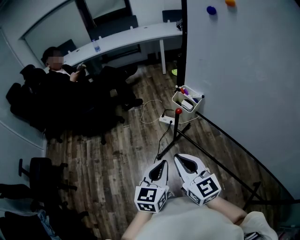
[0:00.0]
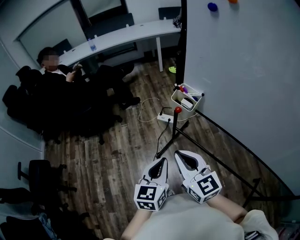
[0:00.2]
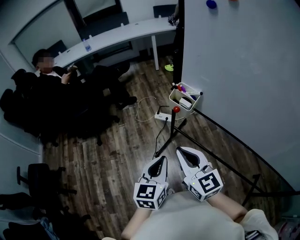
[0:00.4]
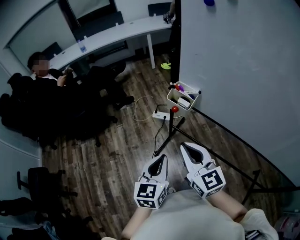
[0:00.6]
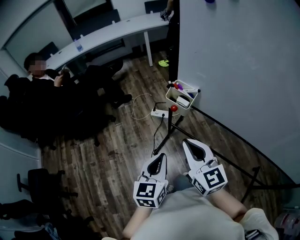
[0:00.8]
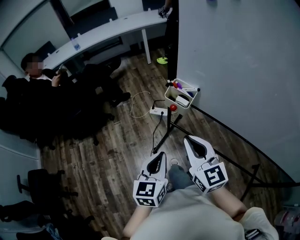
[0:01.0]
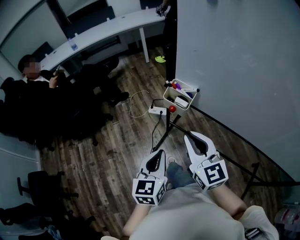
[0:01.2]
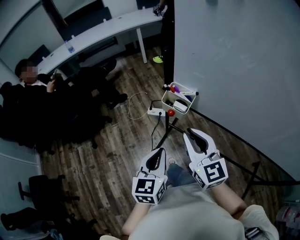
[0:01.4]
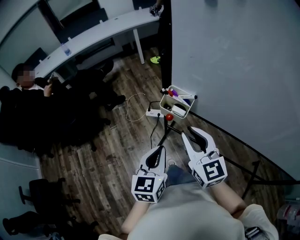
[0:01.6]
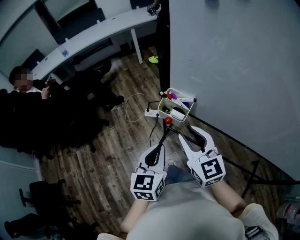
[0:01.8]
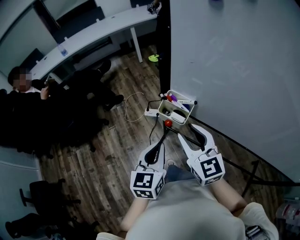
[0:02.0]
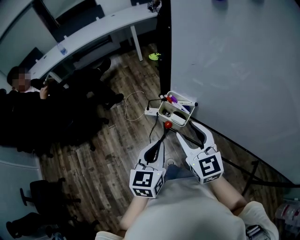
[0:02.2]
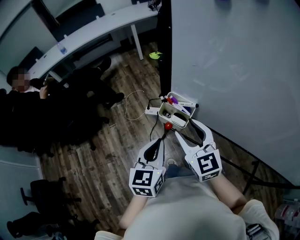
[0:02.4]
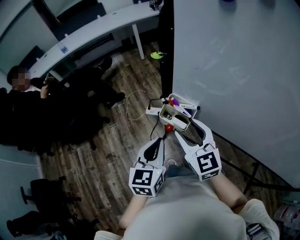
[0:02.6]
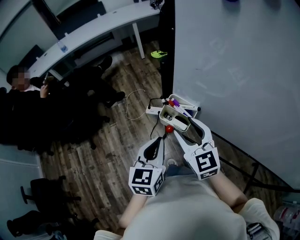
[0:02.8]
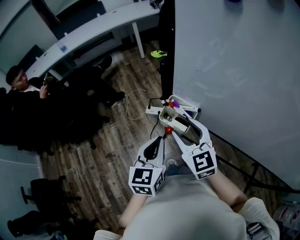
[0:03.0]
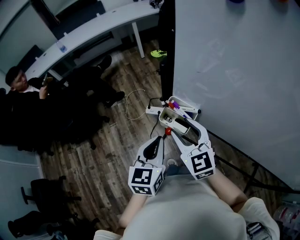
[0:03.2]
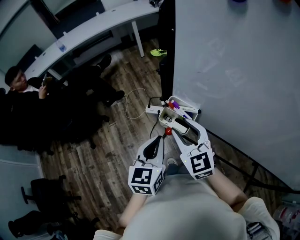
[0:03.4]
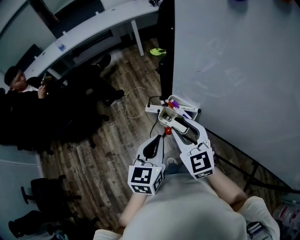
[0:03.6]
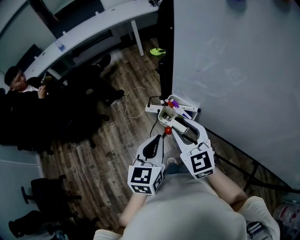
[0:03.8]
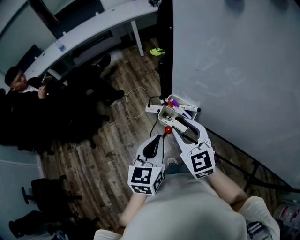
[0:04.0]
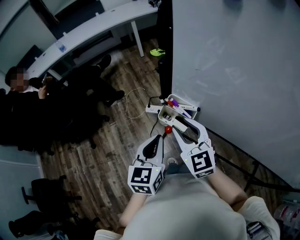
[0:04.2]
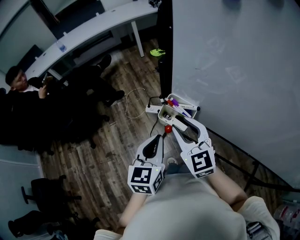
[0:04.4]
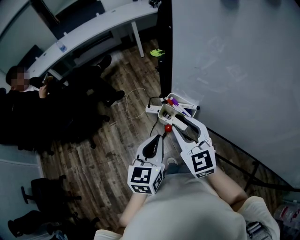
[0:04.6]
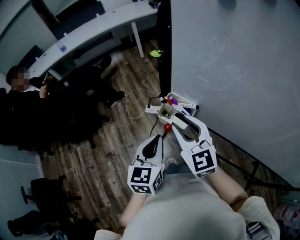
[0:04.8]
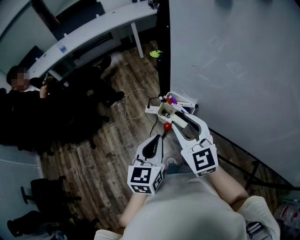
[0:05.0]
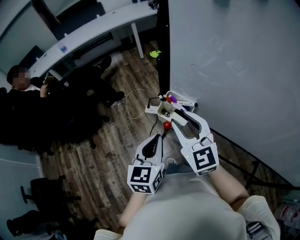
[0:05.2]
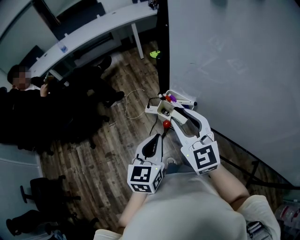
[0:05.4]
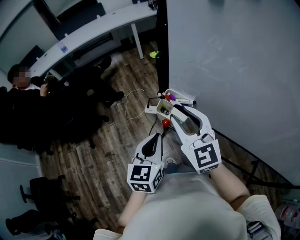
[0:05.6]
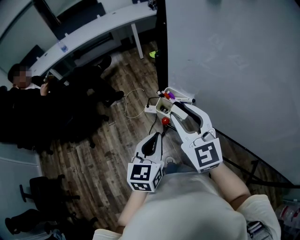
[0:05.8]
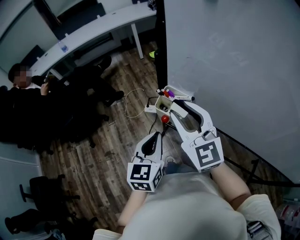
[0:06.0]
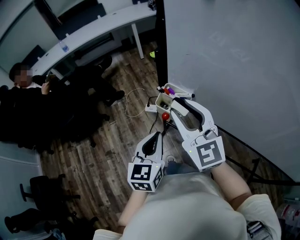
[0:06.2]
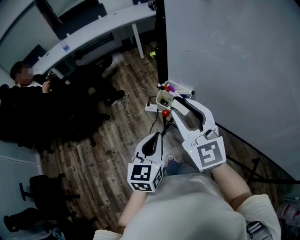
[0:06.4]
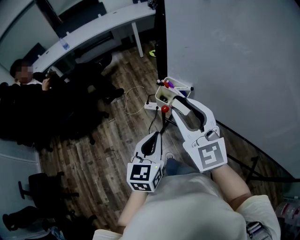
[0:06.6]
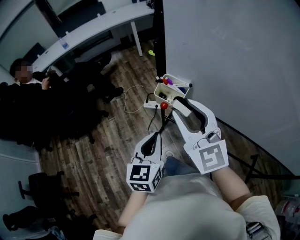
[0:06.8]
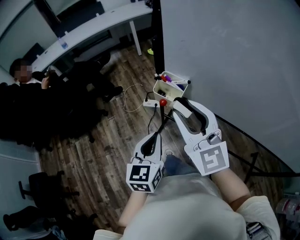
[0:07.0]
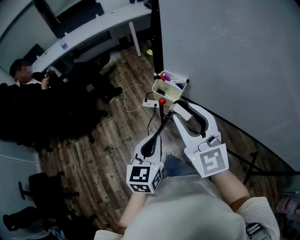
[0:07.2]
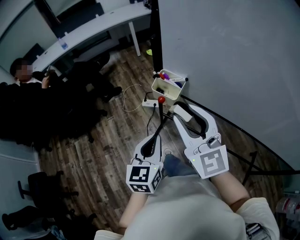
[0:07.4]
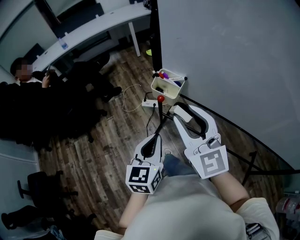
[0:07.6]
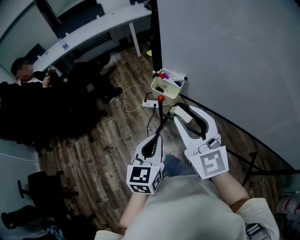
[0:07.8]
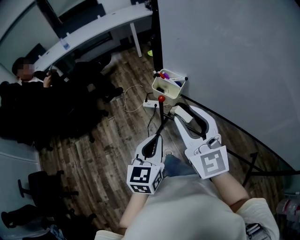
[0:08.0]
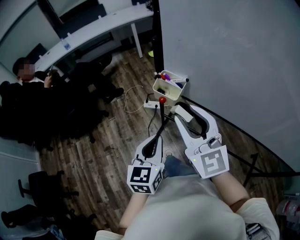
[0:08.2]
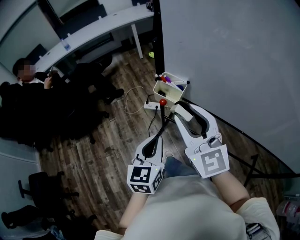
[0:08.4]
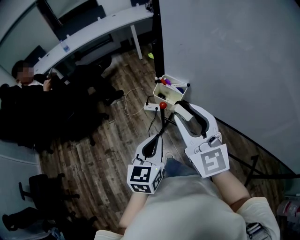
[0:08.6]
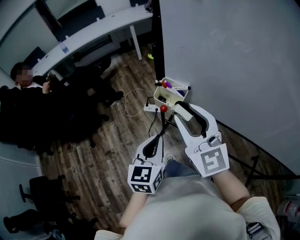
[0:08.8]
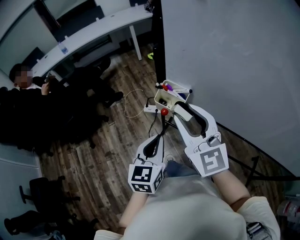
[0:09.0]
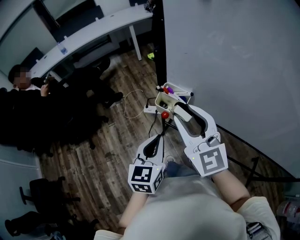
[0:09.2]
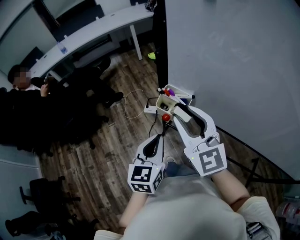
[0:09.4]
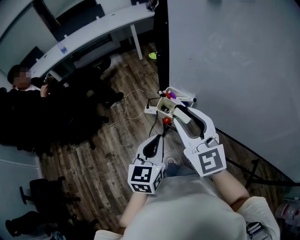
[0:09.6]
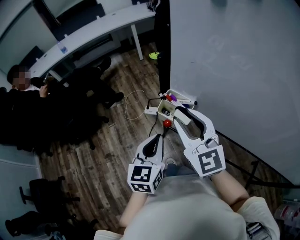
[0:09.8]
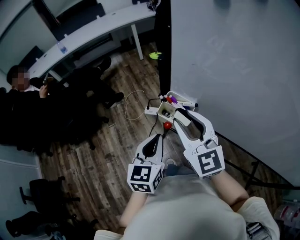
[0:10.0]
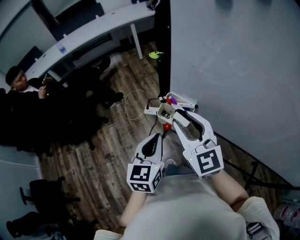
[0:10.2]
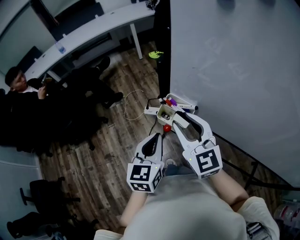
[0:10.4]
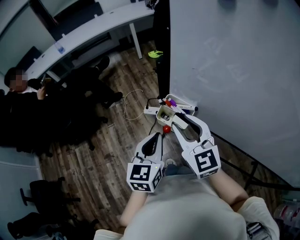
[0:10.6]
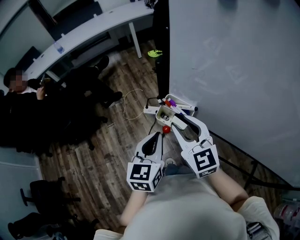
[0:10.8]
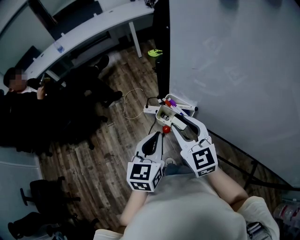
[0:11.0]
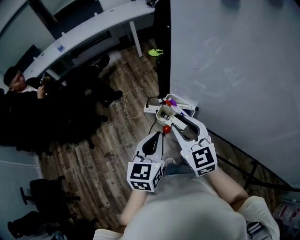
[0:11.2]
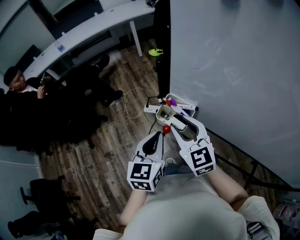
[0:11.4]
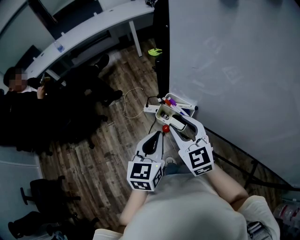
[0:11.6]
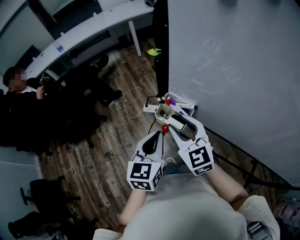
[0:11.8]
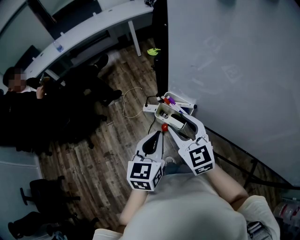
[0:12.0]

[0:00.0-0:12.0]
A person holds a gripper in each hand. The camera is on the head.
0:00.0 to 0:01.6: The right gripper is displaced forward and to the right by some 15 cm, and rotates some 20 degrees. Meanwhile the left gripper heads forward, covering some 15 cm.
0:01.6 to 0:03.0: The grippers both shift forward by some 10 cm. The right gripper opens.
0:03.0 to 0:04.4: The two grippers keep their place.
0:04.4 to 0:06.0: The right gripper goes roughly 10 cm upward.
0:06.0 to 0:07.6: Both grippers travel together backward, some 10 cm.
0:07.6 to 0:09.0: The two grippers go approximately 5 cm forward.
0:09.0 to 0:10.4: The right gripper heads forward and downward, covering some 10 cm, while the left gripper moves forward, roughly 10 cm.
0:10.4 to 0:12.0: The right gripper moves downward, some 5 cm.

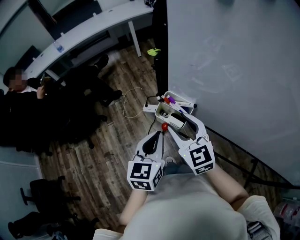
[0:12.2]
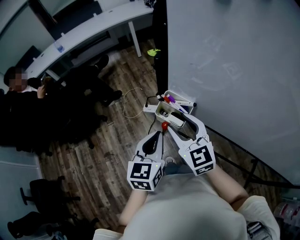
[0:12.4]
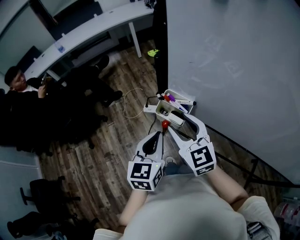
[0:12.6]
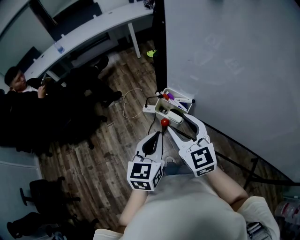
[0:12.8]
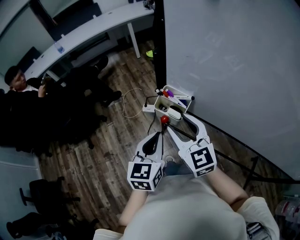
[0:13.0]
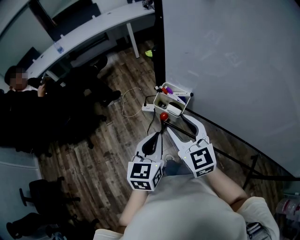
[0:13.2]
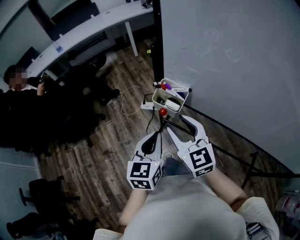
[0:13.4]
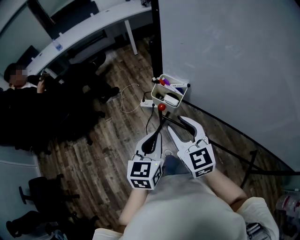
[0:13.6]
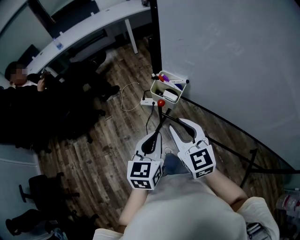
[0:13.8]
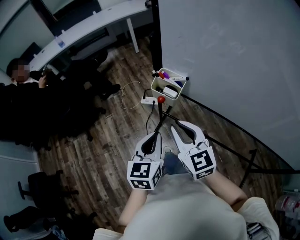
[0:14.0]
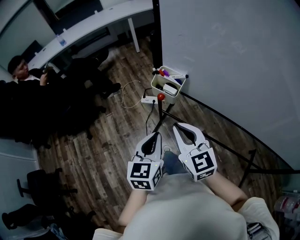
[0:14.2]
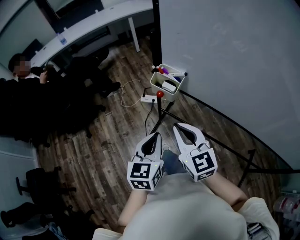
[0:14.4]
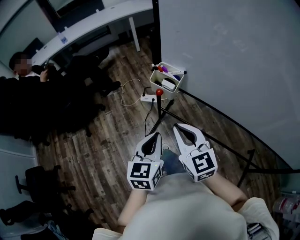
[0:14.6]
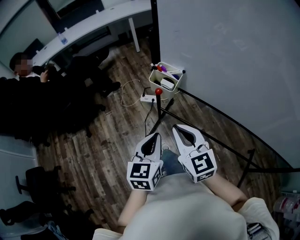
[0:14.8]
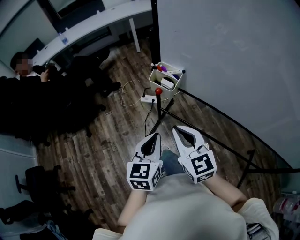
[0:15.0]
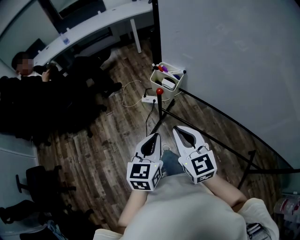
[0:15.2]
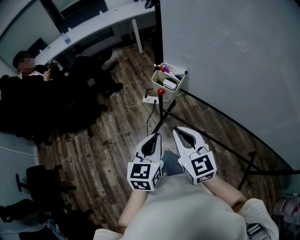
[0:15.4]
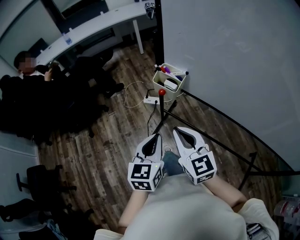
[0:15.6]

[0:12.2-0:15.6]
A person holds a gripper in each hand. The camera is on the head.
0:12.2 to 0:13.8: The two grippers go roughly 10 cm backward. The right gripper closes.
0:13.8 to 0:15.6: The two grippers go about 10 cm backward. The right gripper closes.

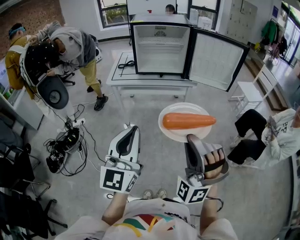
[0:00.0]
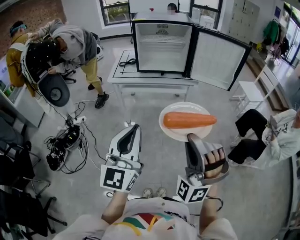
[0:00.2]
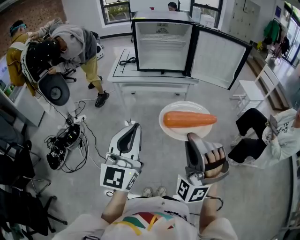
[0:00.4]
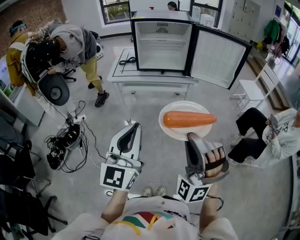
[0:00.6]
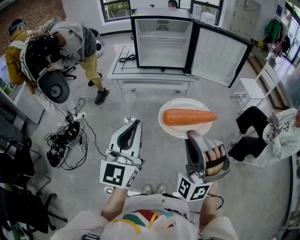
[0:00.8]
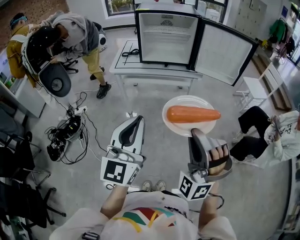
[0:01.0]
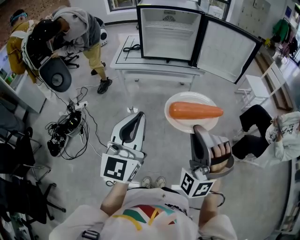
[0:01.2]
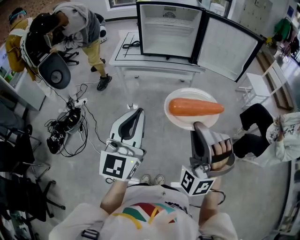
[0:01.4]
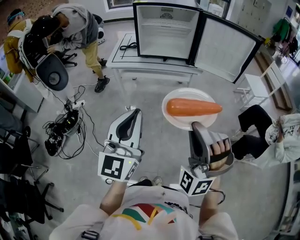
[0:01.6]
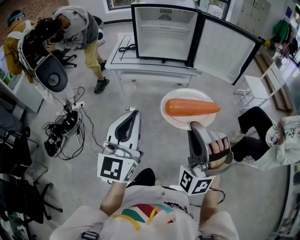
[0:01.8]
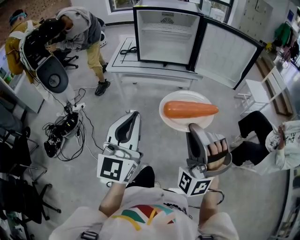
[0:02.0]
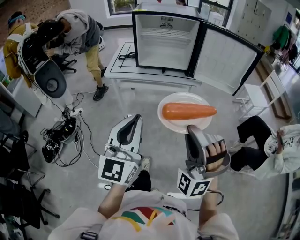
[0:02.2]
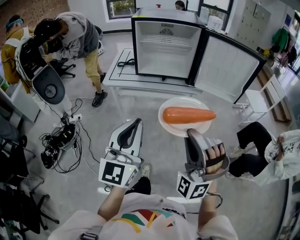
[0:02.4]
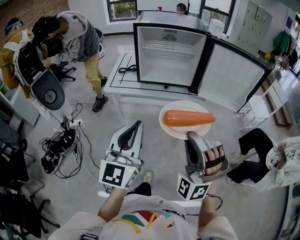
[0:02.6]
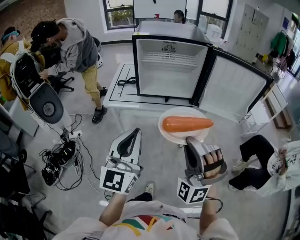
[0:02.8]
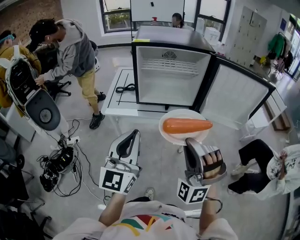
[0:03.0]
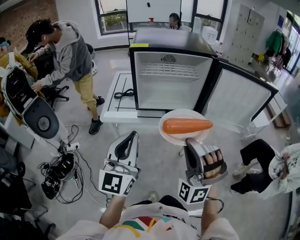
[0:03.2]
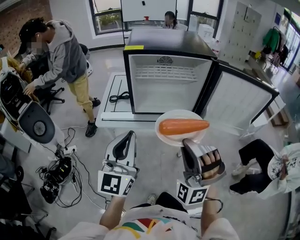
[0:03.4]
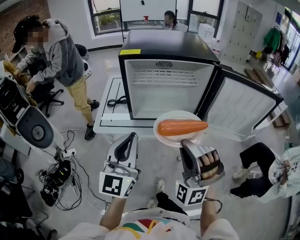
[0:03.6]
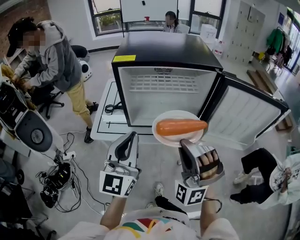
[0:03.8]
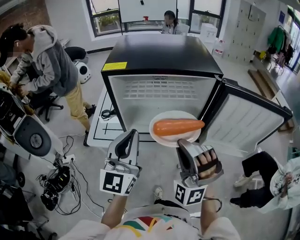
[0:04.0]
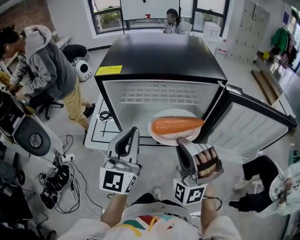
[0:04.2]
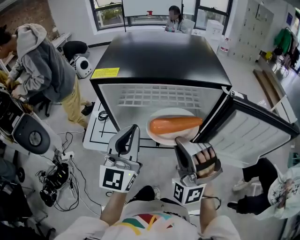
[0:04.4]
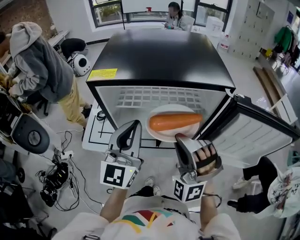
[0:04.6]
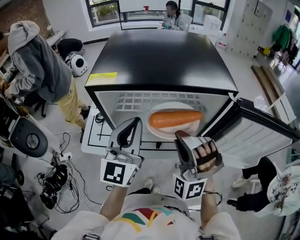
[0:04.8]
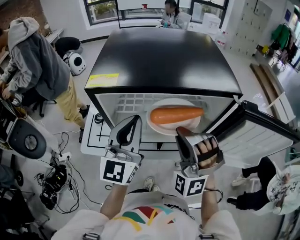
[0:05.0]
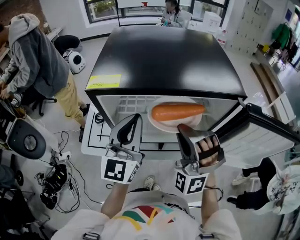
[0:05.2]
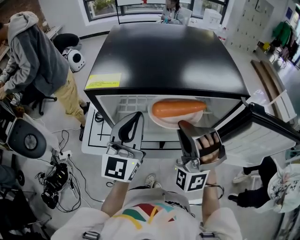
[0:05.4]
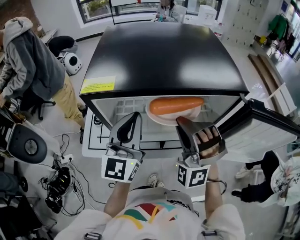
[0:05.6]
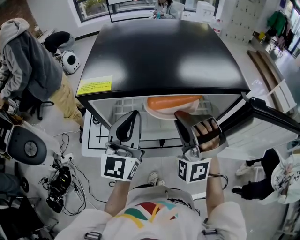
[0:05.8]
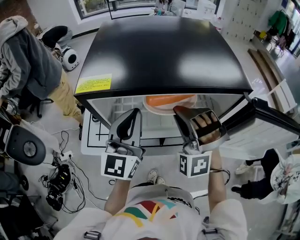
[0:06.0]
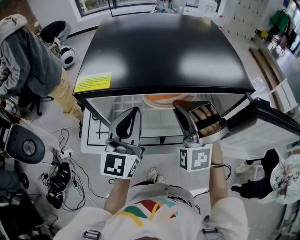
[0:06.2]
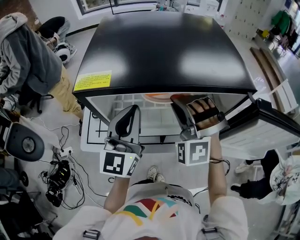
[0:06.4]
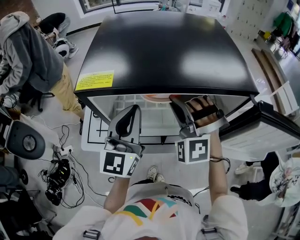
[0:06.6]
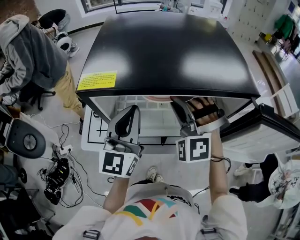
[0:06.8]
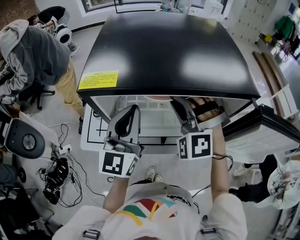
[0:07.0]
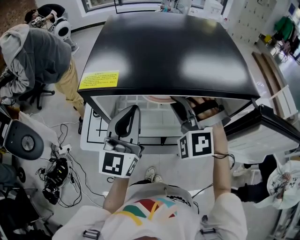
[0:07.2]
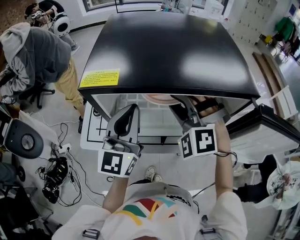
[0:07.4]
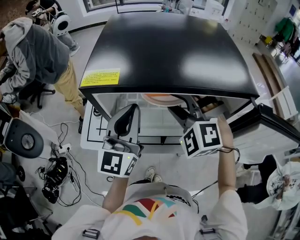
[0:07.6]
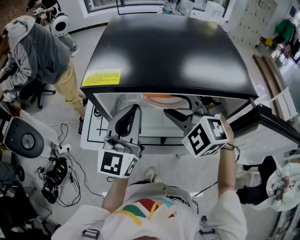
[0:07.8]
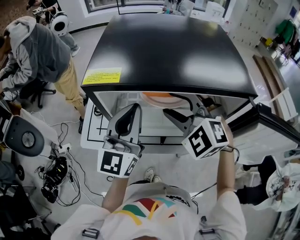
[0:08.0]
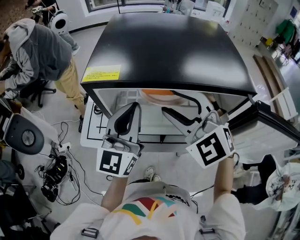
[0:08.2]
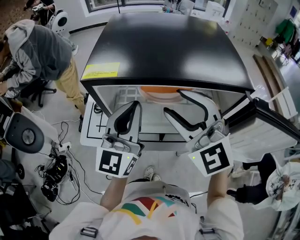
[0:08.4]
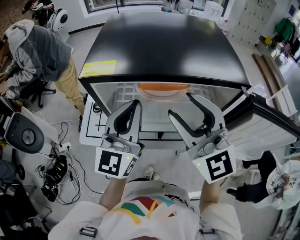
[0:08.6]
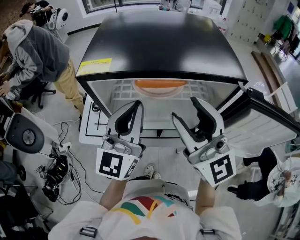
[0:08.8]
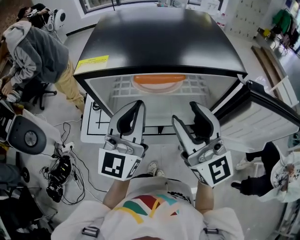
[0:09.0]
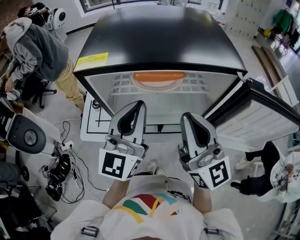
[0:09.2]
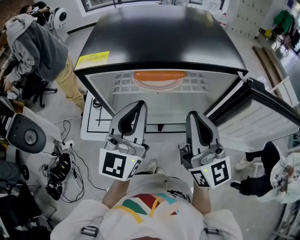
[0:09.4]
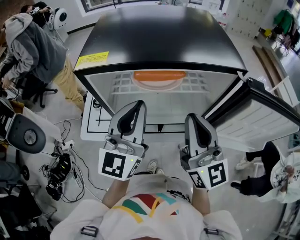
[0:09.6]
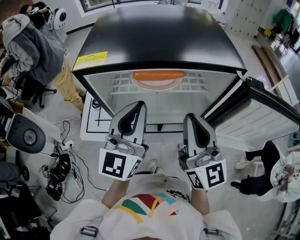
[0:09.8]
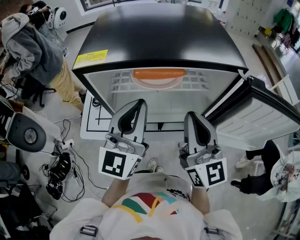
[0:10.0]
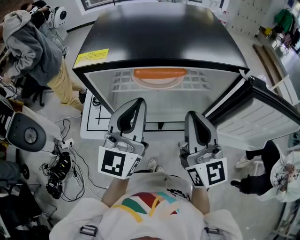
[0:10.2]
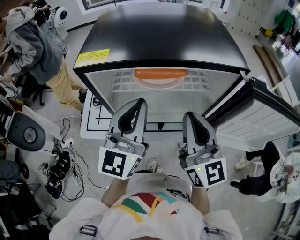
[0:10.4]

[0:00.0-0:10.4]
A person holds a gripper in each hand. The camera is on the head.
0:00.0 to 0:01.4: The grippers move only a little.
0:01.4 to 0:03.0: Both grippers move forward, roughly 25 cm.
0:03.0 to 0:04.4: Both grippers travel together forward, some 30 cm.
0:04.4 to 0:06.0: Both grippers move forward, about 10 cm.
0:06.0 to 0:07.4: The right gripper moves approximately 5 cm.
0:07.4 to 0:09.0: The right gripper is displaced backward and upward by some 15 cm, twists roughly 70 degrees clockwise, seen from behind, and opens. Meanwhile the left gripper travels backward by roughly 5 cm.
0:09.0 to 0:10.4: The right gripper closes its fingers.
